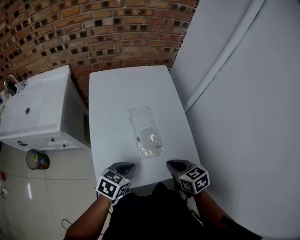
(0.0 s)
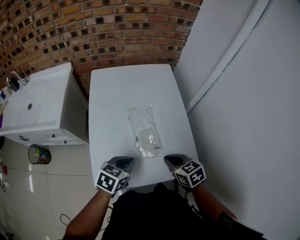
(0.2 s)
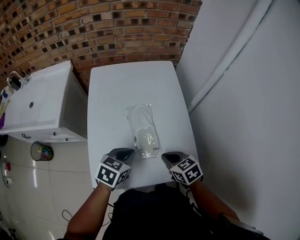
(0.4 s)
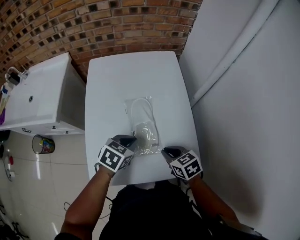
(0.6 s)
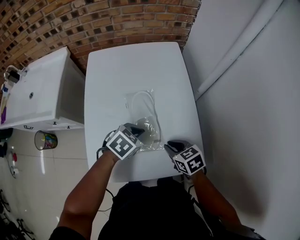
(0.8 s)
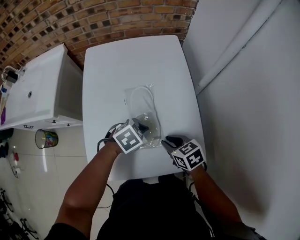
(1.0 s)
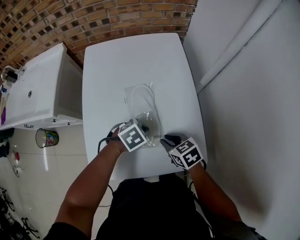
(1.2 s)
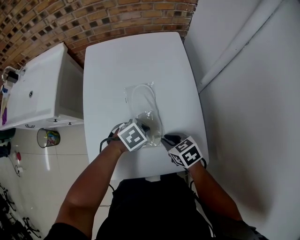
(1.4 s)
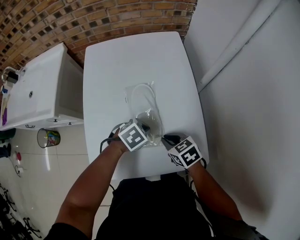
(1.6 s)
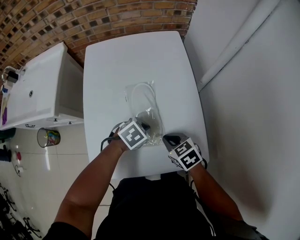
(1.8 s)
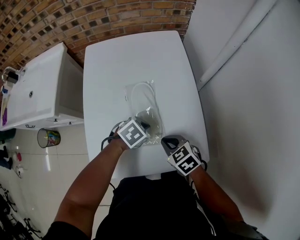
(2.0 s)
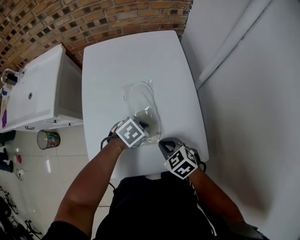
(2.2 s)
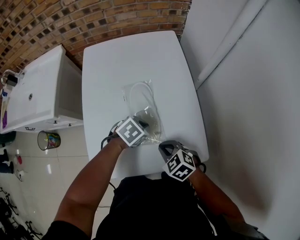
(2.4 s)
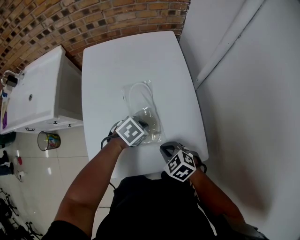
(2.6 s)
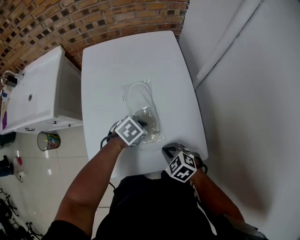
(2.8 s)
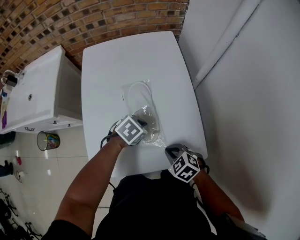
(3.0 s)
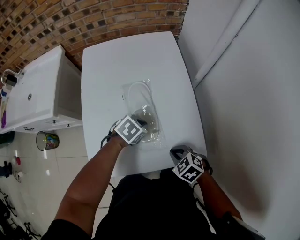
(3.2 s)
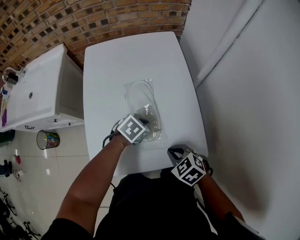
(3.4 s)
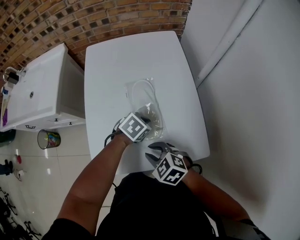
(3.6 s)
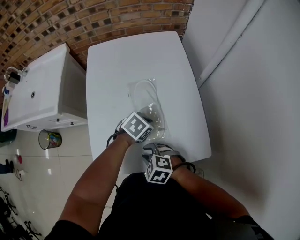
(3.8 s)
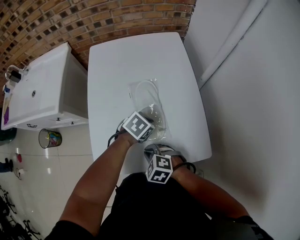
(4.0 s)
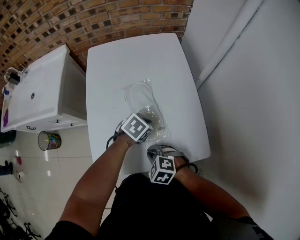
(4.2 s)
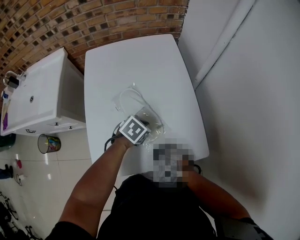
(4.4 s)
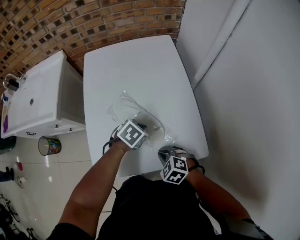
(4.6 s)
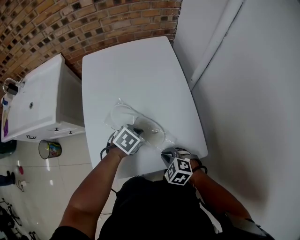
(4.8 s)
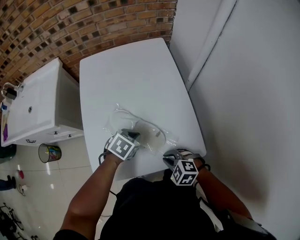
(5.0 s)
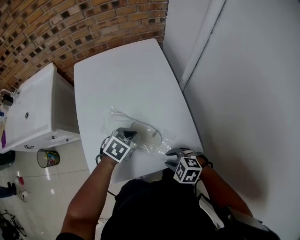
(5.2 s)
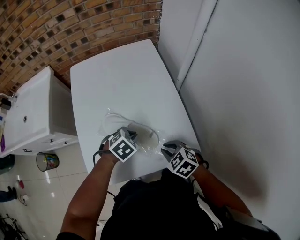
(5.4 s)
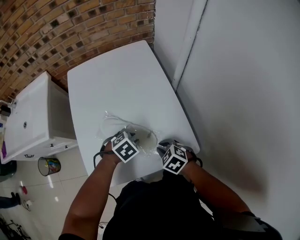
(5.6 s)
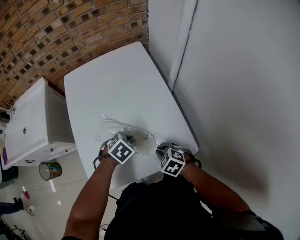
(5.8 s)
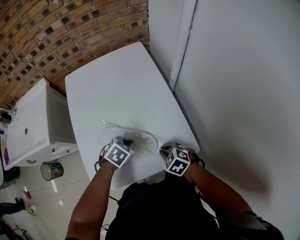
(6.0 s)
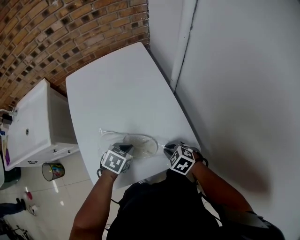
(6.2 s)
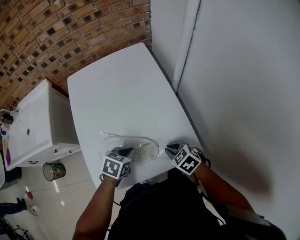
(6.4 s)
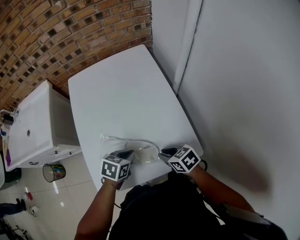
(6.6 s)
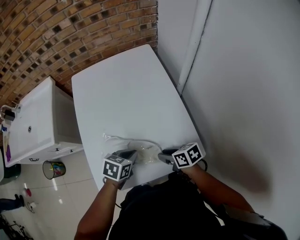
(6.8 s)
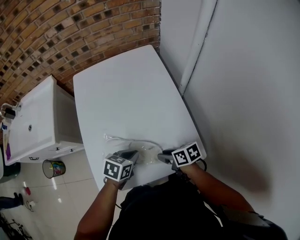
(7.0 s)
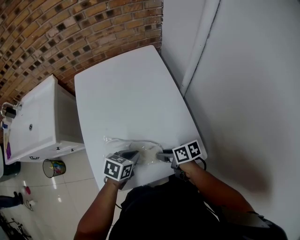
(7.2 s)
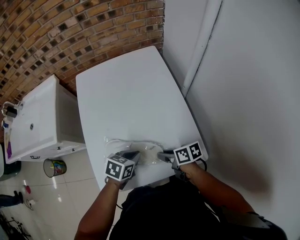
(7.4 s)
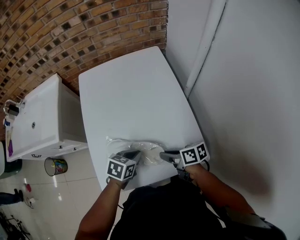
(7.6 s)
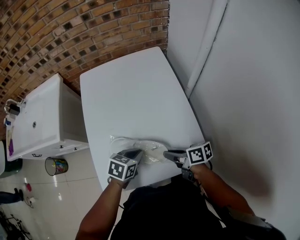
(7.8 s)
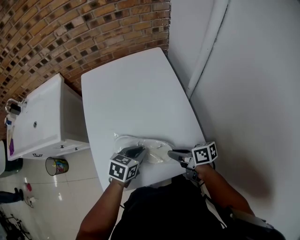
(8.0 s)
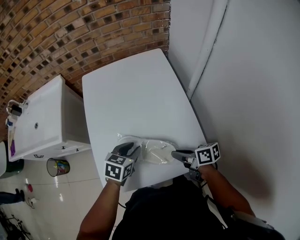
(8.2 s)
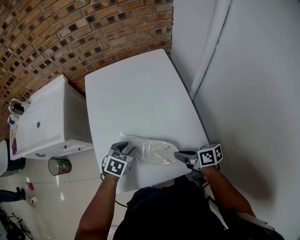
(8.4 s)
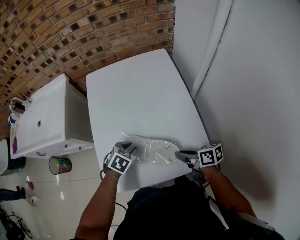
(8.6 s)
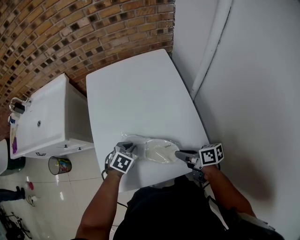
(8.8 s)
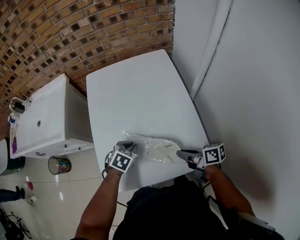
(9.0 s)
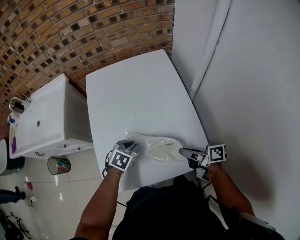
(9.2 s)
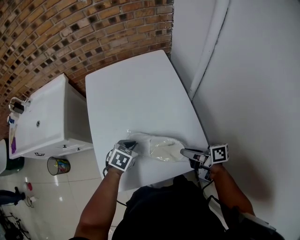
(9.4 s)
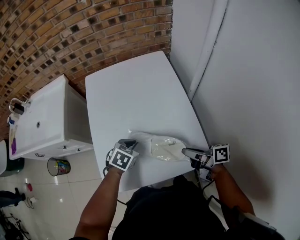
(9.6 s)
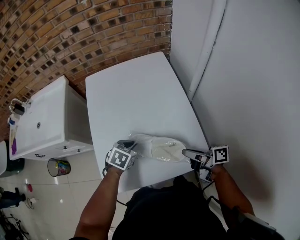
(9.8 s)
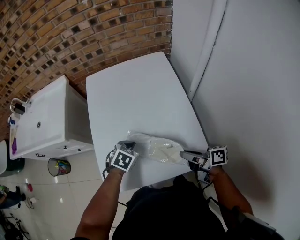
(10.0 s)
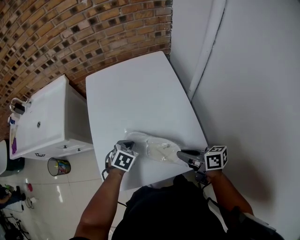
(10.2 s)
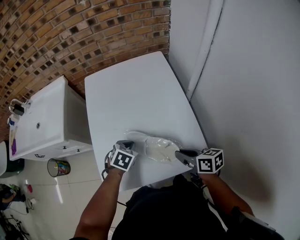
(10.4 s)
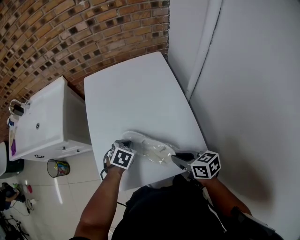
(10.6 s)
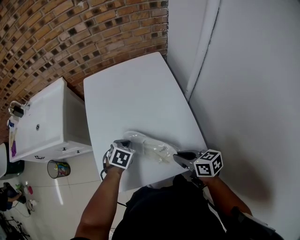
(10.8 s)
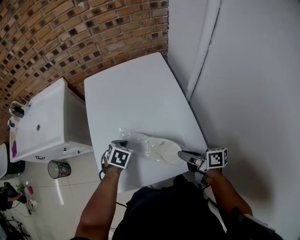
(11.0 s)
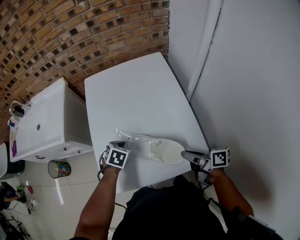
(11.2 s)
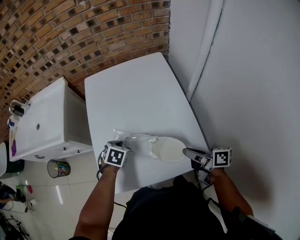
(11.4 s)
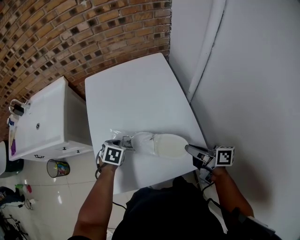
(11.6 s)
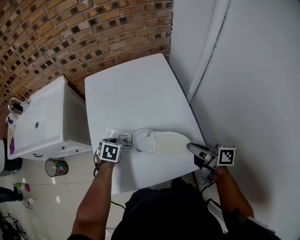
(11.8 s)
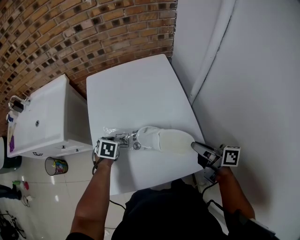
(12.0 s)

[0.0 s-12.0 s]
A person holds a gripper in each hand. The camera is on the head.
0.0 to 1.6 s: The left gripper shifts by about 20 cm, and swivels some 30 degrees, while the right gripper travels downward by approximately 10 cm.
1.6 to 3.0 s: The right gripper ends up about 10 cm from where it was, and swivels roughly 20 degrees.
3.0 to 4.4 s: The right gripper opens, then closes again.
4.4 to 6.0 s: The right gripper changes place by about 10 cm, and opens, then closes once more. The left gripper opens, then closes again.
6.0 to 7.6 s: The right gripper ends up about 5 cm from where it was, twists some 60 degrees clockwise, seen from behind, and opens, then closes again, while the left gripper swivels some 30 degrees.
7.6 to 9.0 s: The right gripper changes place by approximately 5 cm; the left gripper moves roughly 5 cm, rotates roughly 20 degrees, and opens, then closes again.
9.0 to 10.4 s: There are only small adjustments of the grippers.
10.4 to 12.0 s: The right gripper goes some 10 cm to the right and upward, and swivels about 20 degrees. The left gripper moves to the left and forward, roughly 10 cm.

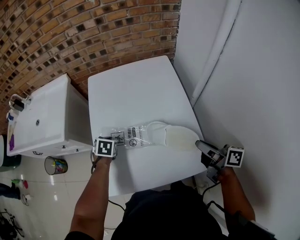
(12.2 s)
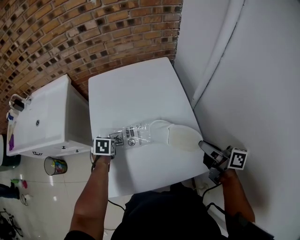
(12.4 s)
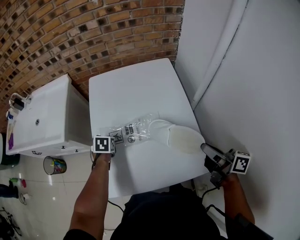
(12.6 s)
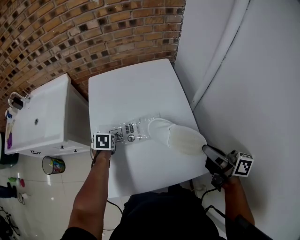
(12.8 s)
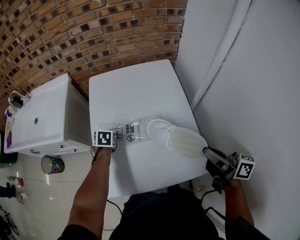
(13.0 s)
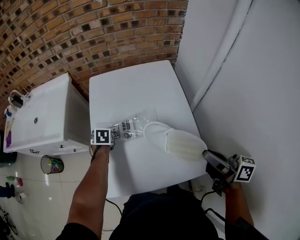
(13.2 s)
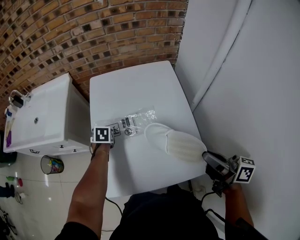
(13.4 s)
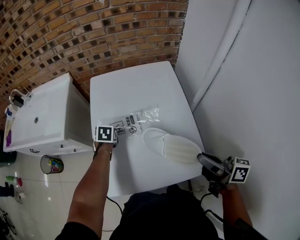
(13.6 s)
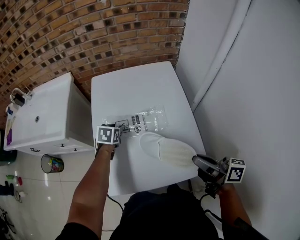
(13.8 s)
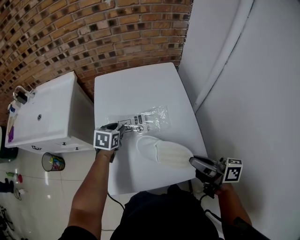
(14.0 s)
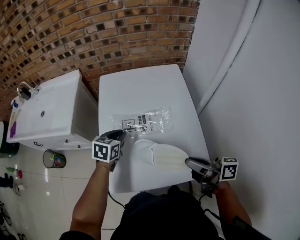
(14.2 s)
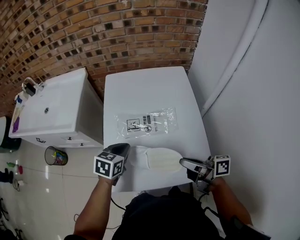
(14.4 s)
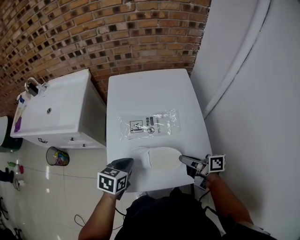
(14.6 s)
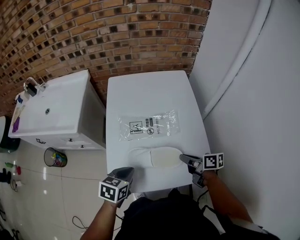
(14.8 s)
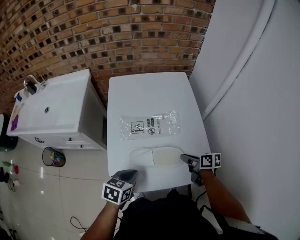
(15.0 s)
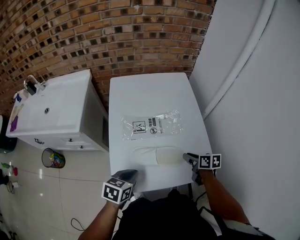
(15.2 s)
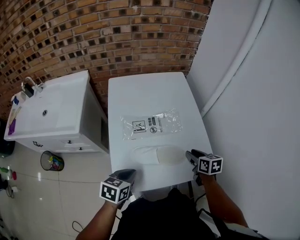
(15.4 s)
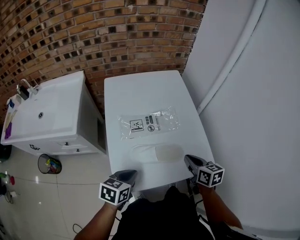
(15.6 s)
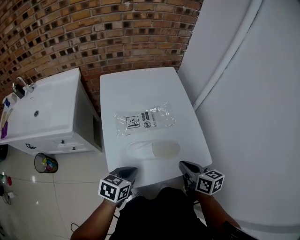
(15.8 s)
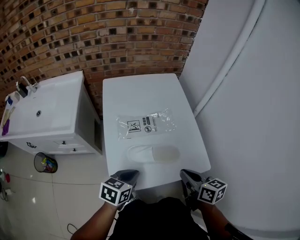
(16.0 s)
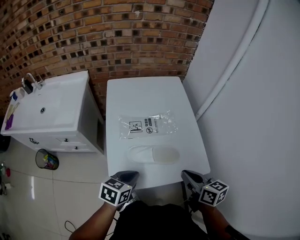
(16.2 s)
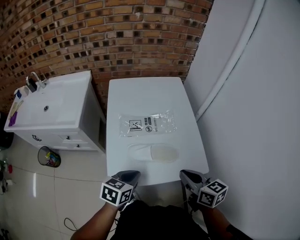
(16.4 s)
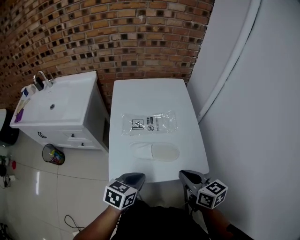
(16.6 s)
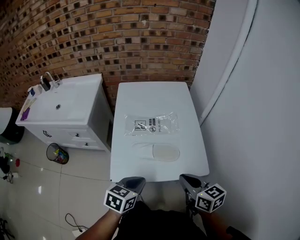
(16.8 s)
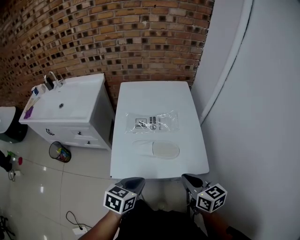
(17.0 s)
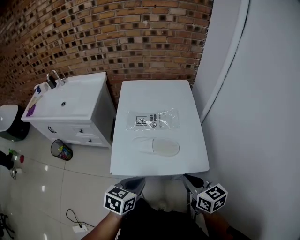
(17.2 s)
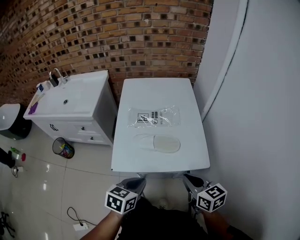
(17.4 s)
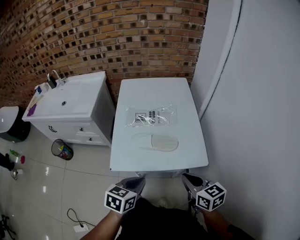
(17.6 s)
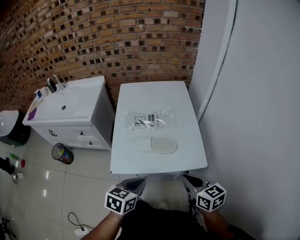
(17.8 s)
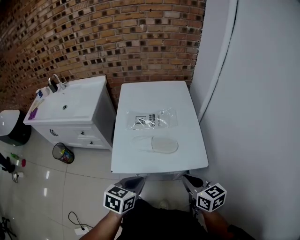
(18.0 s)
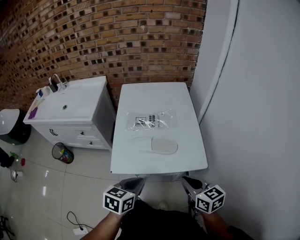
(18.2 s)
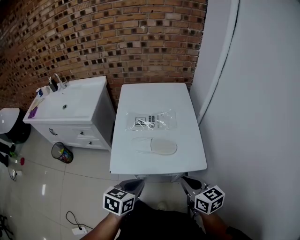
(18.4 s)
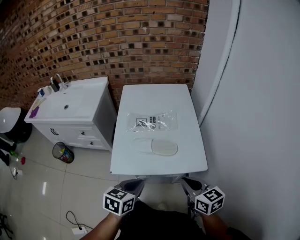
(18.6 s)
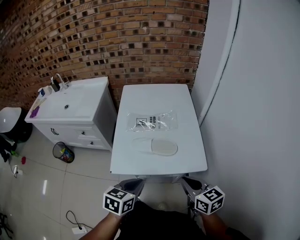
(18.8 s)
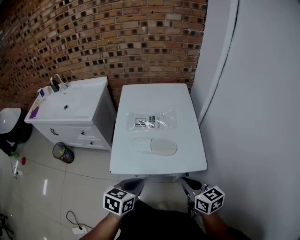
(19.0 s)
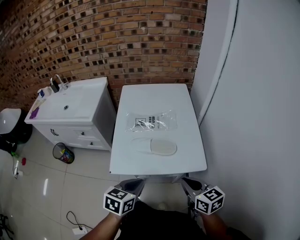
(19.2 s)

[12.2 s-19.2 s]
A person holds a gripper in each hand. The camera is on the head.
12.2 to 13.6 s: The left gripper shifts about 5 cm forward; the right gripper travels upward by about 5 cm.
13.6 to 15.0 s: The left gripper travels backward by roughly 25 cm, swivels about 30 degrees, and opens, then closes again. The right gripper heads downward, covering some 20 cm, and tips its fingers downward by about 30 degrees.
15.0 to 16.4 s: The left gripper changes place by some 5 cm. Meanwhile the right gripper goes approximately 20 cm upward and backward, rotates approximately 30 degrees, and opens, then closes again.
16.4 to 17.8 s: The left gripper heads backward and to the right, covering about 15 cm. Meanwhile the right gripper heads backward, covering about 10 cm.
17.8 to 19.2 s: Neither gripper changes place.

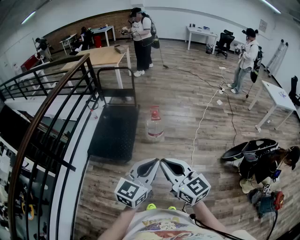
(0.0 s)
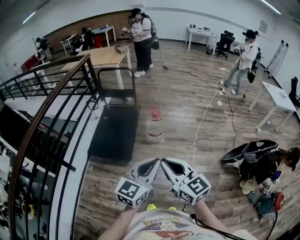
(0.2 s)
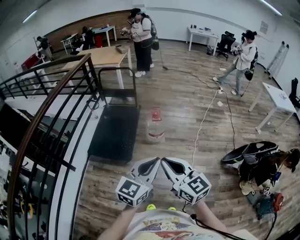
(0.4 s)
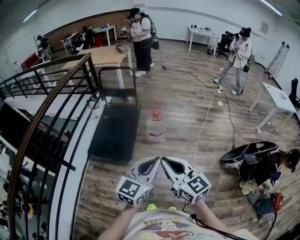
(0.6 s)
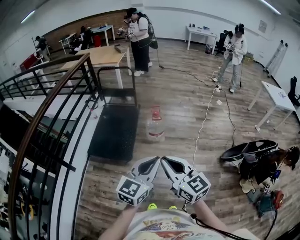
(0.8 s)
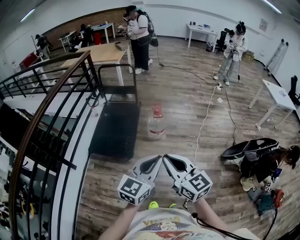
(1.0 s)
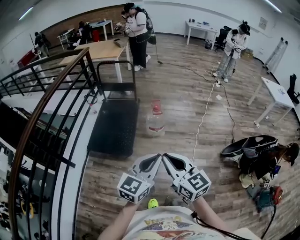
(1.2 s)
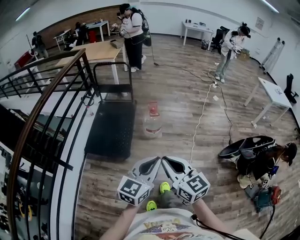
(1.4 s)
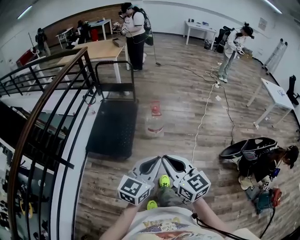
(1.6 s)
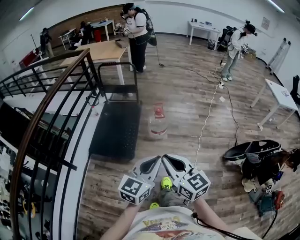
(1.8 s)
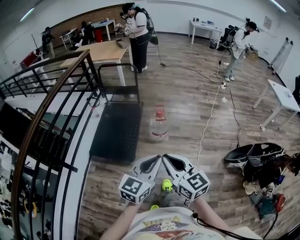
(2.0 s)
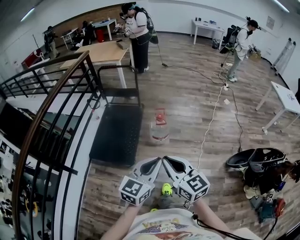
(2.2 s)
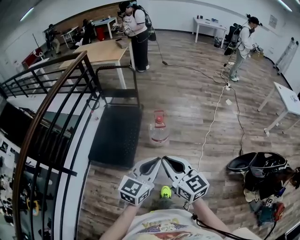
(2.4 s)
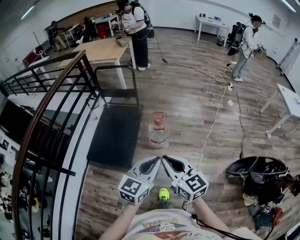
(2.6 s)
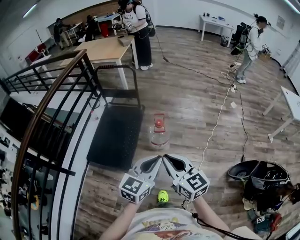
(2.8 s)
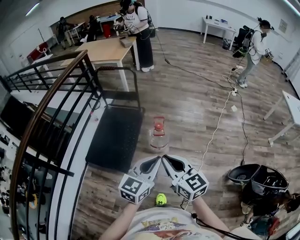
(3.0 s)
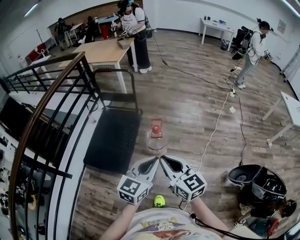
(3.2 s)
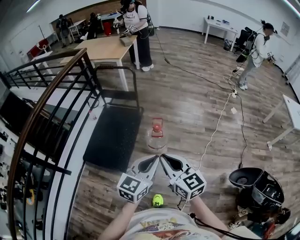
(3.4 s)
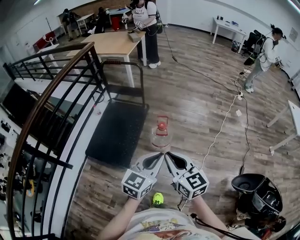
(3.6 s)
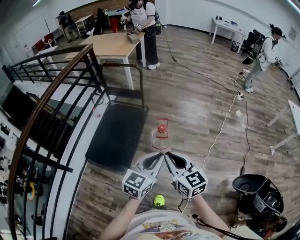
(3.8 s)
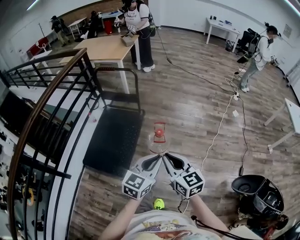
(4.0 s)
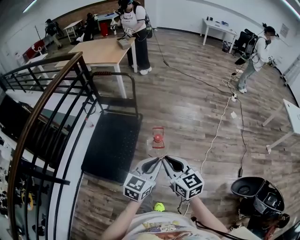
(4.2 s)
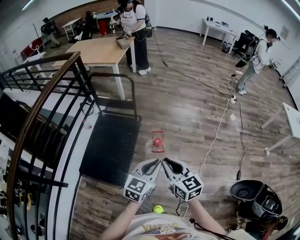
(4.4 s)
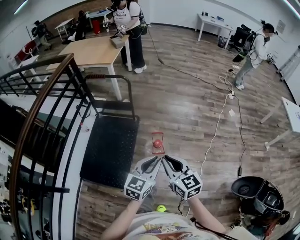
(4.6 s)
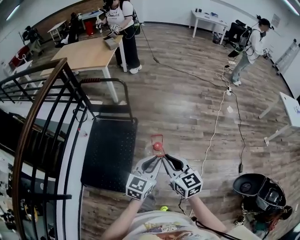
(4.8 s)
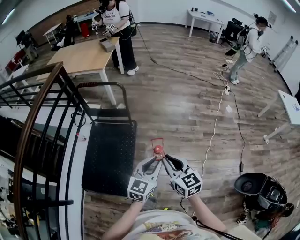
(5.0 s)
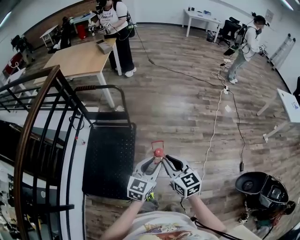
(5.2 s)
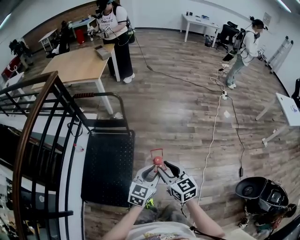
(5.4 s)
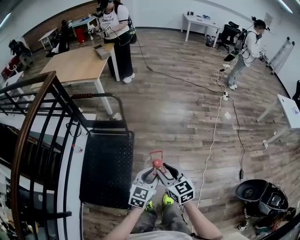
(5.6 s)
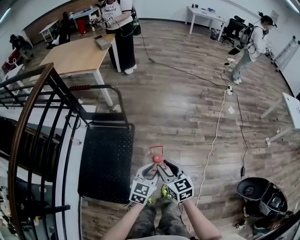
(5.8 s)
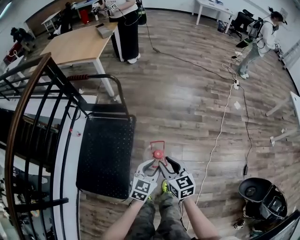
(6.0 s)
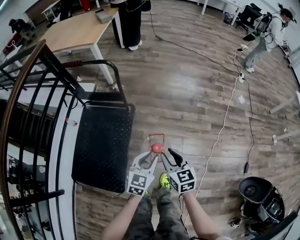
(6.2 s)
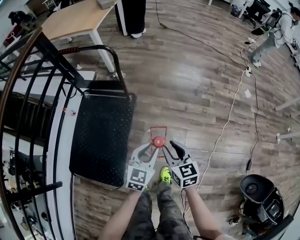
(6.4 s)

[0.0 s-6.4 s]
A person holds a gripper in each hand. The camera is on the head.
0.0 to 1.6 s: The left gripper changes place by some 5 cm, while the right gripper moves approximately 5 cm.
1.6 to 3.2 s: Both grippers travel together forward, about 30 cm.
3.2 to 4.8 s: Both grippers travel together forward, roughly 25 cm.
4.8 to 6.4 s: The two grippers go about 35 cm downward and forward. The right gripper opens up.
